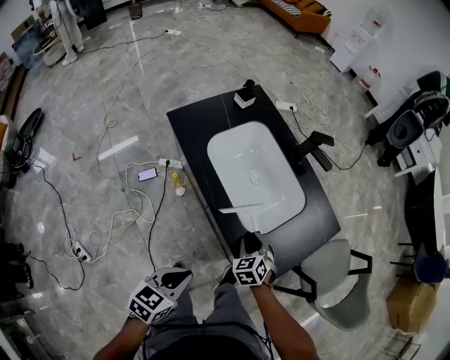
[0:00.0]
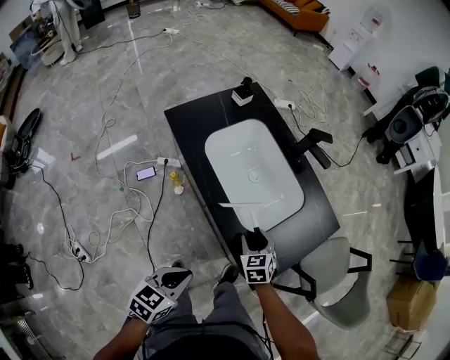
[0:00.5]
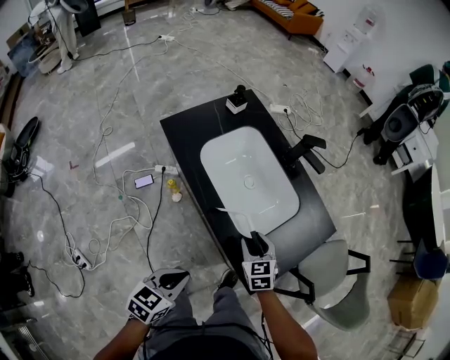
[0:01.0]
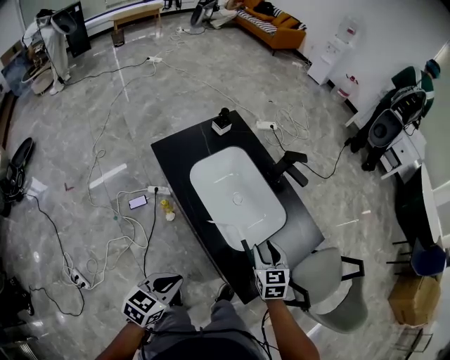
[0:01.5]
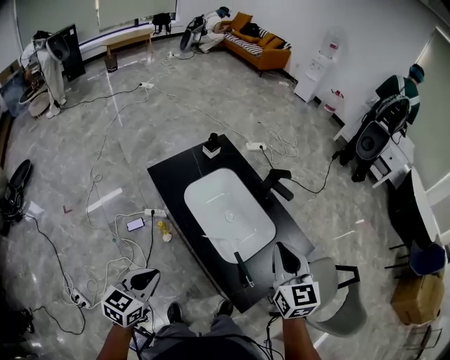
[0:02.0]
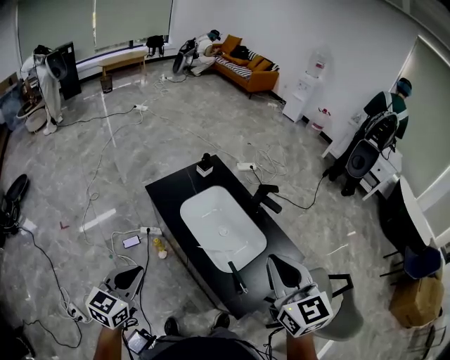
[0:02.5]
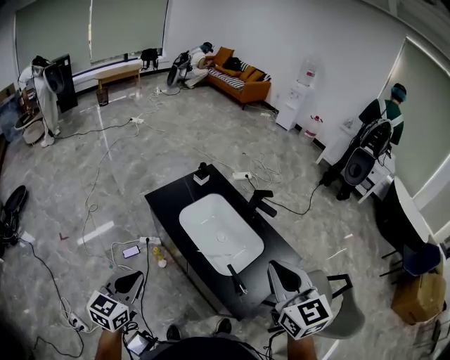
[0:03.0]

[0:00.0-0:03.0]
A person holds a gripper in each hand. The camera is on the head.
0.0 to 1.5 s: The right gripper shifts roughly 15 cm upward, forward and to the right, and turns by approximately 30 degrees; the left gripper moves roughly 5 cm.
1.5 to 3.0 s: The right gripper moves upward, about 35 cm, turns by about 20 degrees, and closes up, while the left gripper shifts some 20 cm upward and to the left, and rotates approximately 20 degrees.

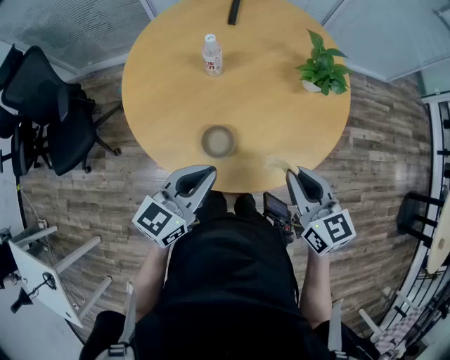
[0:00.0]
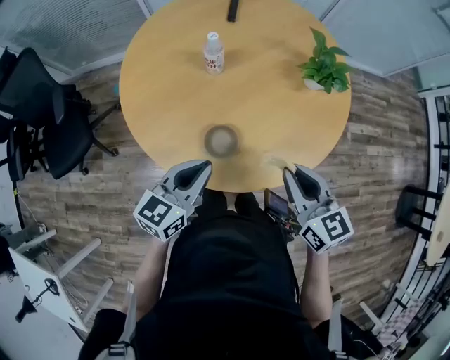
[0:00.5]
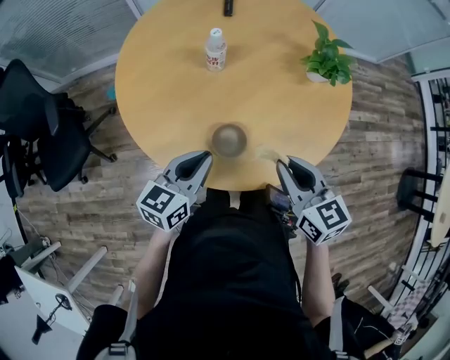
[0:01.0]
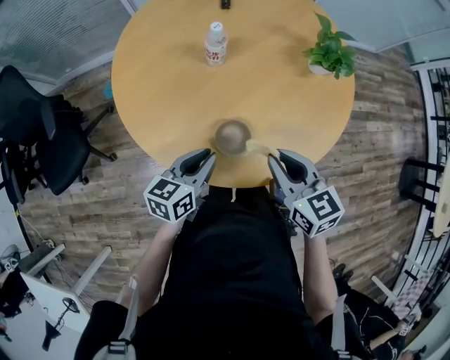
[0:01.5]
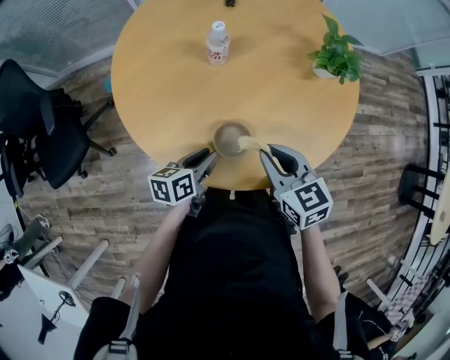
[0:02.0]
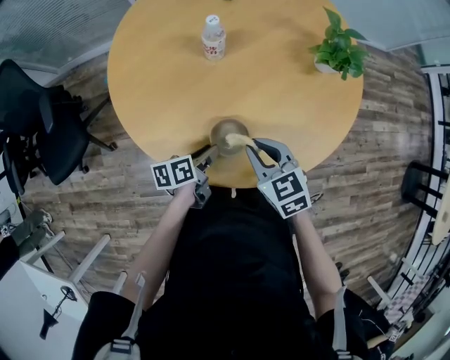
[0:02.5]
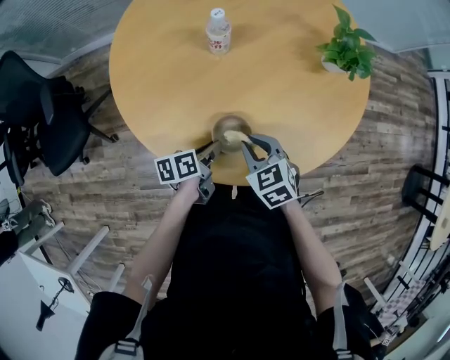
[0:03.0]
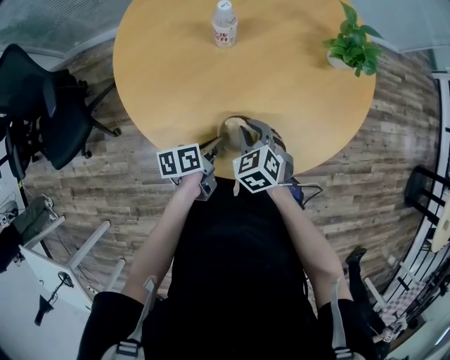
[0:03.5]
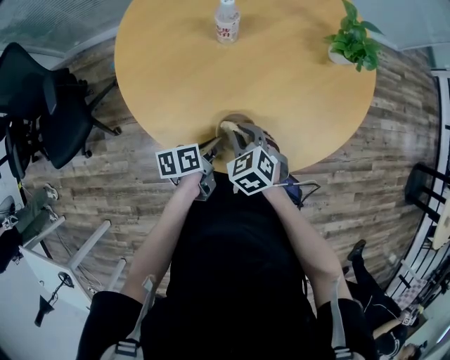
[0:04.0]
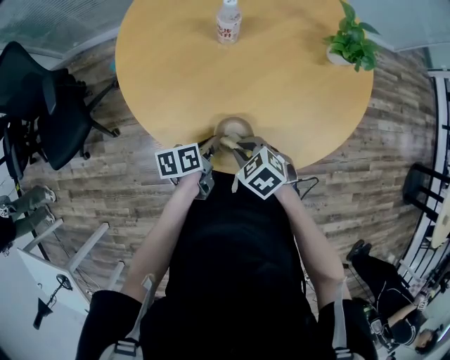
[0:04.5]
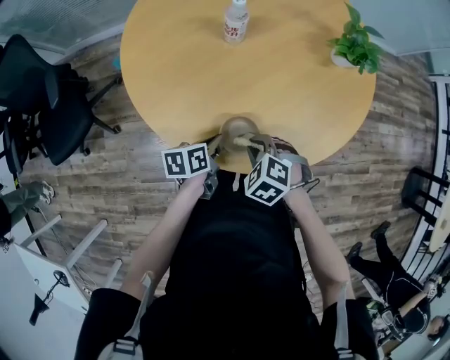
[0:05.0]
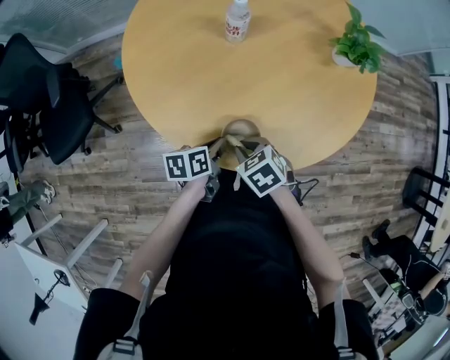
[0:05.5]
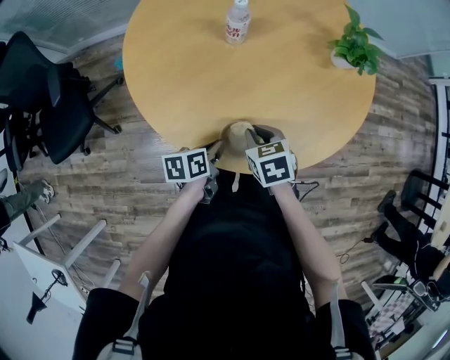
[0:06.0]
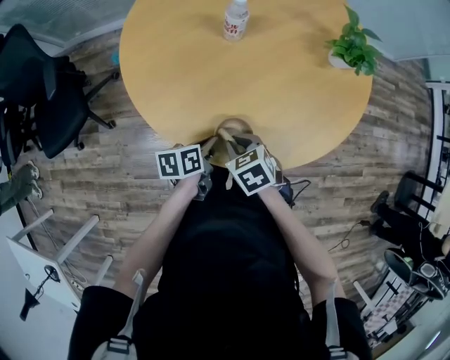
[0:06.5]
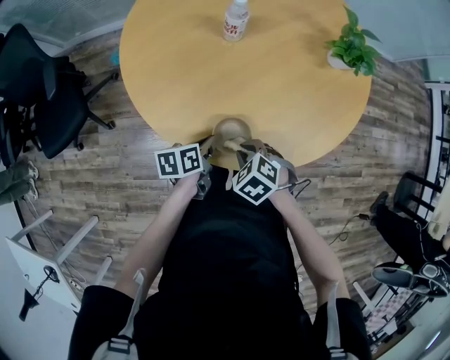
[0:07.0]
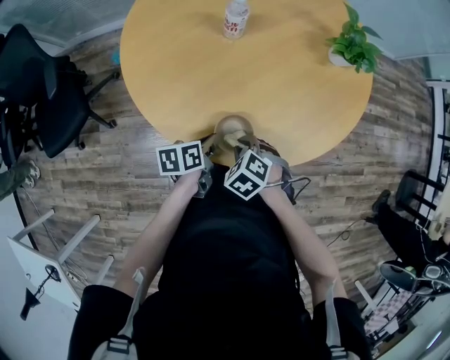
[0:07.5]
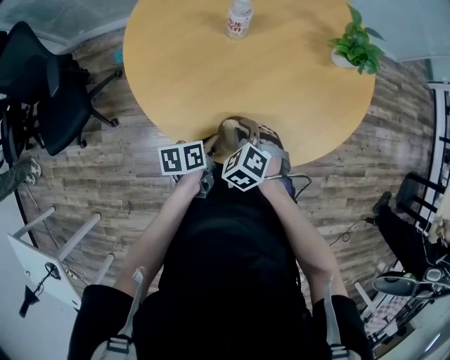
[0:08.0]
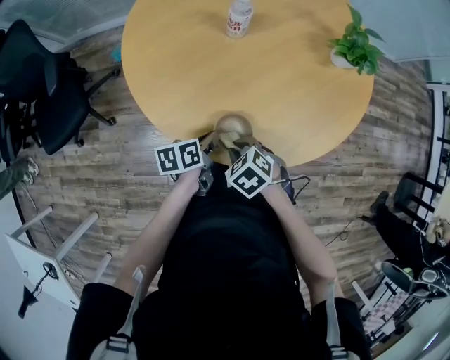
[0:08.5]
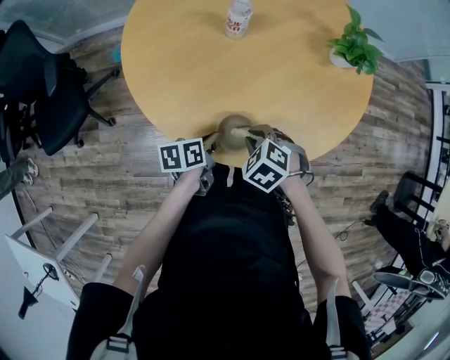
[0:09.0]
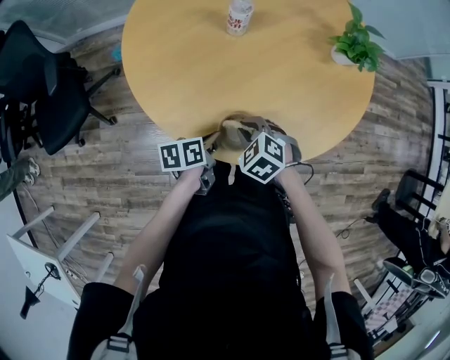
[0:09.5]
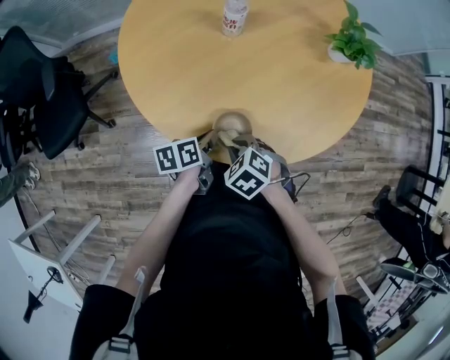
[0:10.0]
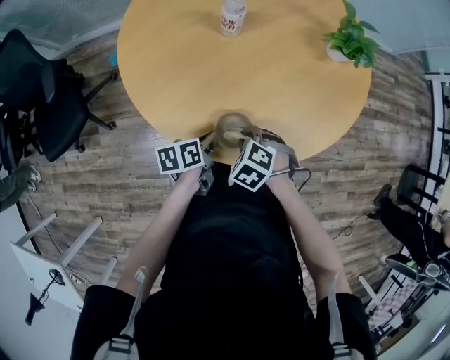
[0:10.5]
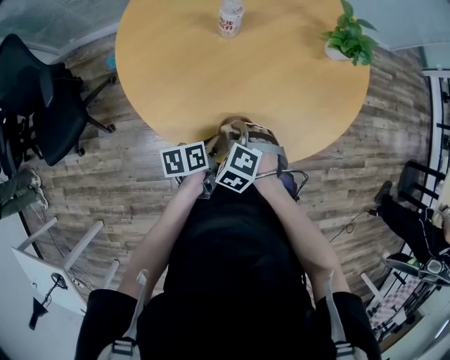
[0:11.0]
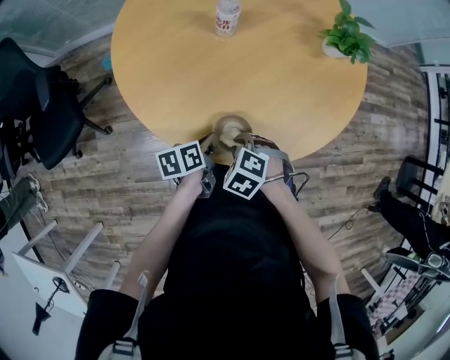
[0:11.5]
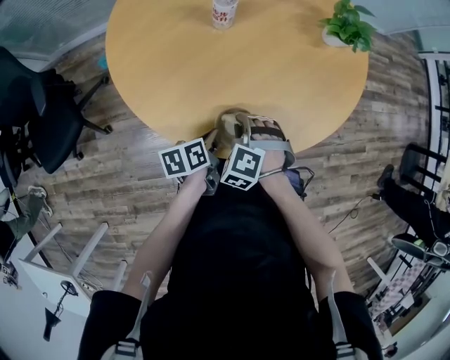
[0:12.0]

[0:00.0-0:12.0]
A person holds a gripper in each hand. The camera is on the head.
0.0 to 2.0 s: The right gripper shifts approximately 15 cm to the left and downward, while the left gripper moves downward, approximately 20 cm, rotates about 40 degrees, and opens up.
2.0 to 4.0 s: The left gripper heads downward, covering roughly 5 cm, and changes its angle by some 20 degrees. Meanwhile the right gripper heads downward and to the left, covering approximately 15 cm, and changes its angle by roughly 30 degrees.
4.0 to 6.0 s: The right gripper turns by roughly 20 degrees.
6.0 to 8.0 s: The right gripper turns by roughly 40 degrees.
8.0 to 10.0 s: The right gripper swings forward and backward, some 5 cm each way, with 2 reversals, and turns by approximately 20 degrees.
10.0 to 12.0 s: The right gripper ends up roughly 5 cm from where it was, and rotates about 30 degrees.

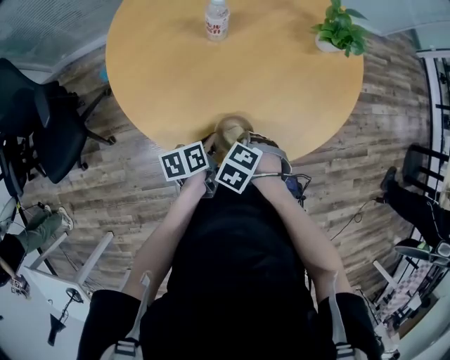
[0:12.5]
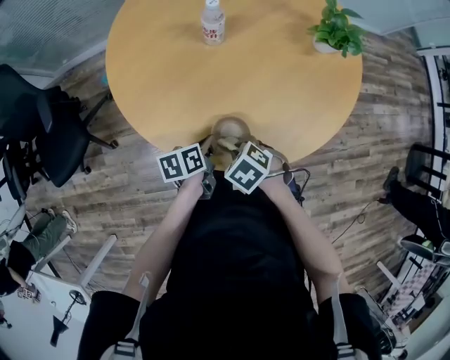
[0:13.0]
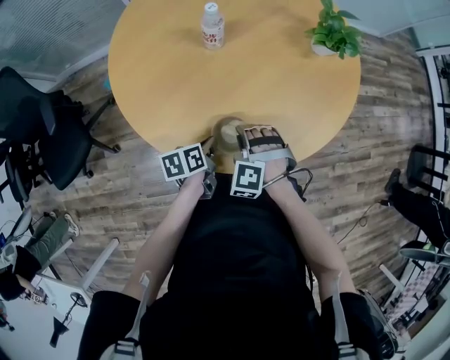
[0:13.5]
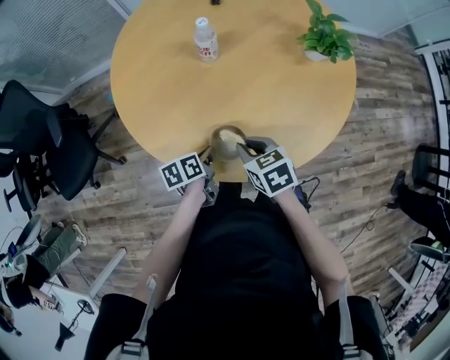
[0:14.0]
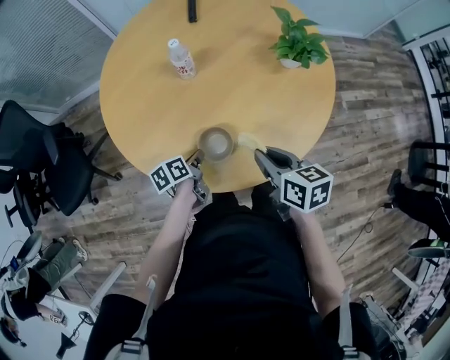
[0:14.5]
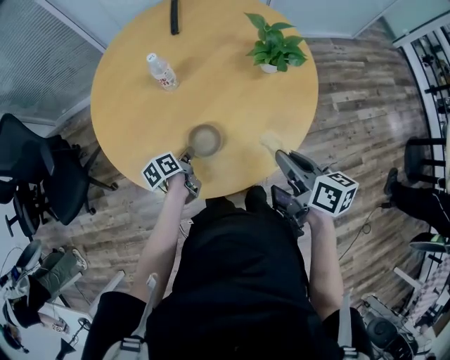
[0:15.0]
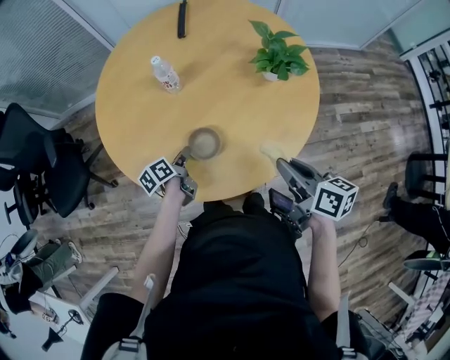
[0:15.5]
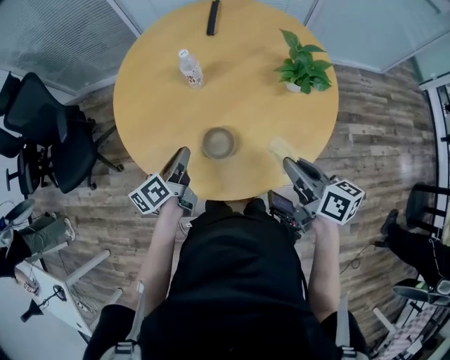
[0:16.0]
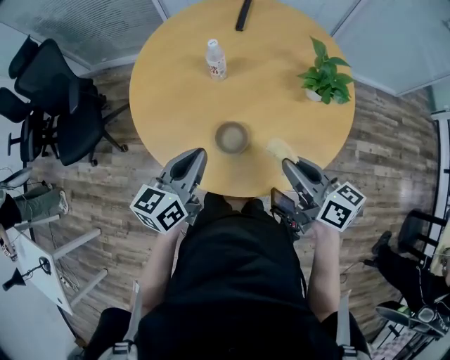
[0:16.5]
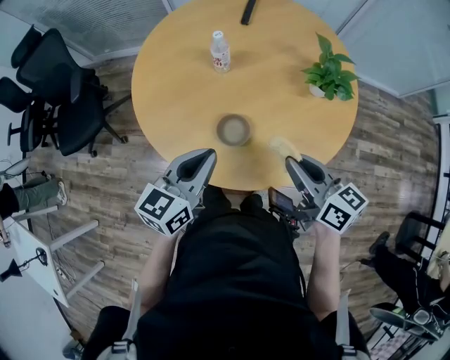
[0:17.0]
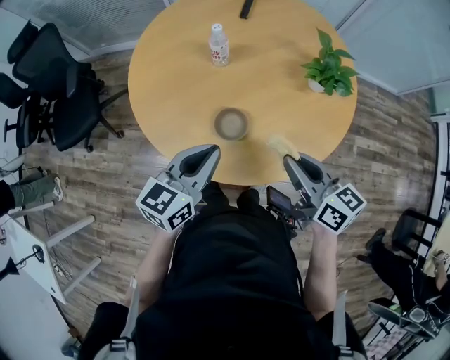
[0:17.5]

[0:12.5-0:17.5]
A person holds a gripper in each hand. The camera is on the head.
12.5 to 15.0 s: The right gripper shifts by roughly 30 cm, and angles its fingers upward, by approximately 60 degrees; the left gripper ends up about 10 cm from where it was.
15.0 to 17.5 s: The right gripper shifts by approximately 5 cm, and turns by roughly 30 degrees. The left gripper shifts about 25 cm upward, twists some 50 degrees clockwise, seen from behind, and opens, then closes once more.

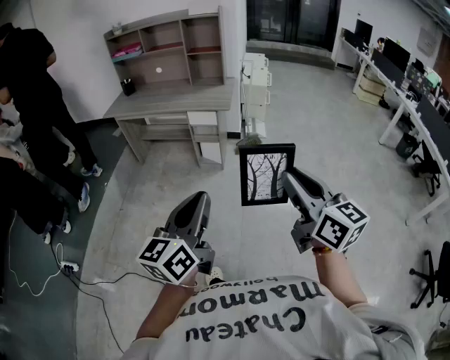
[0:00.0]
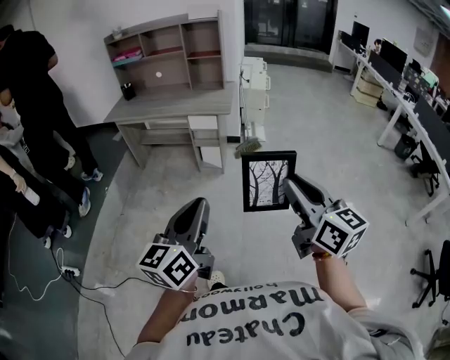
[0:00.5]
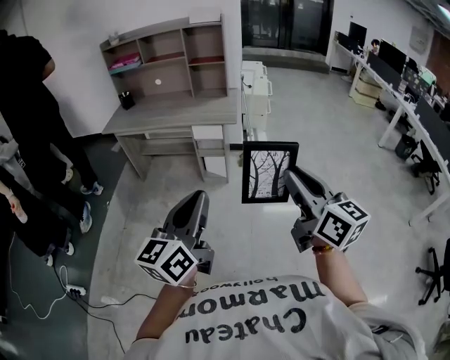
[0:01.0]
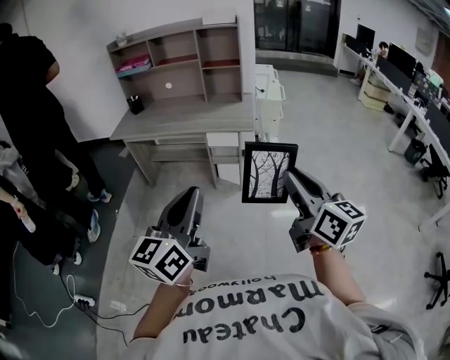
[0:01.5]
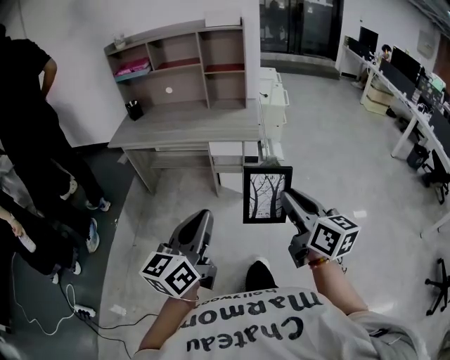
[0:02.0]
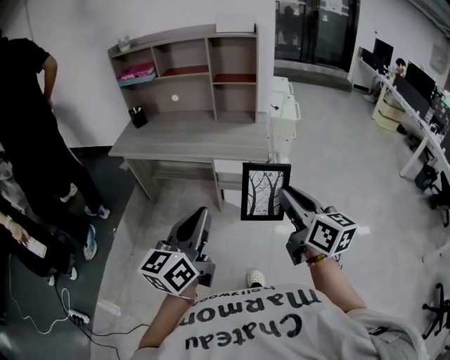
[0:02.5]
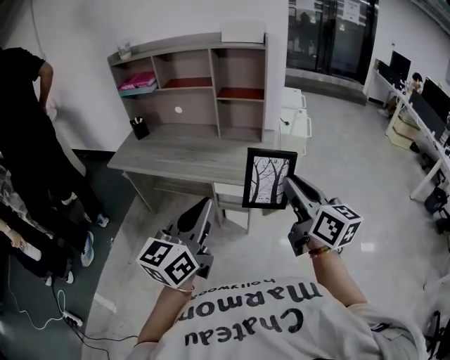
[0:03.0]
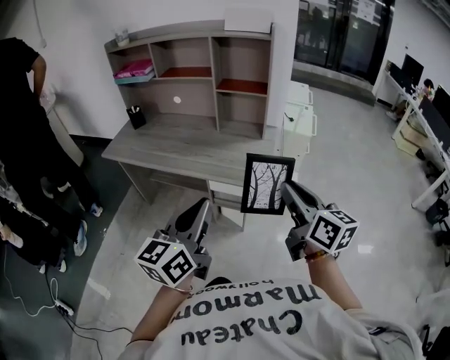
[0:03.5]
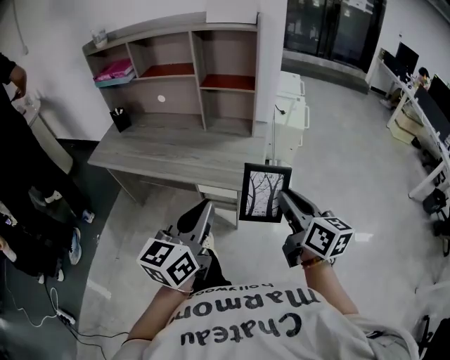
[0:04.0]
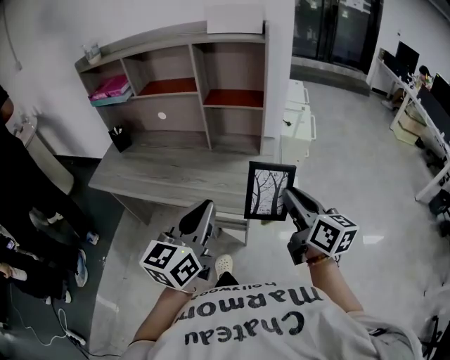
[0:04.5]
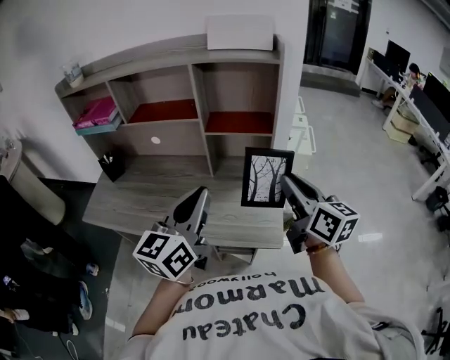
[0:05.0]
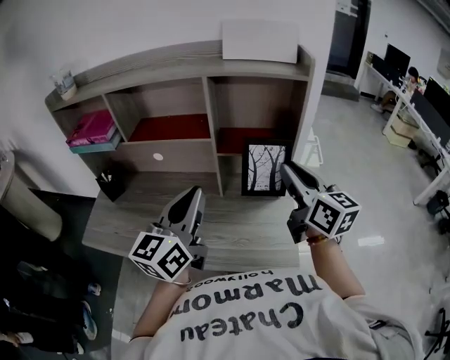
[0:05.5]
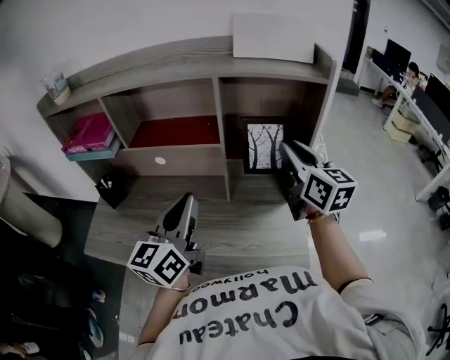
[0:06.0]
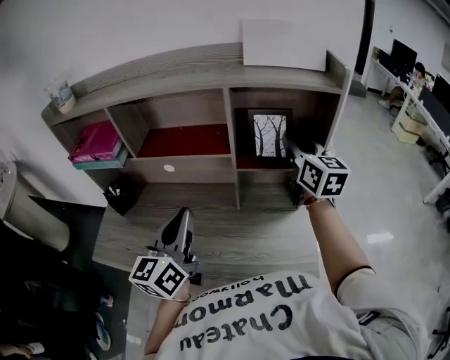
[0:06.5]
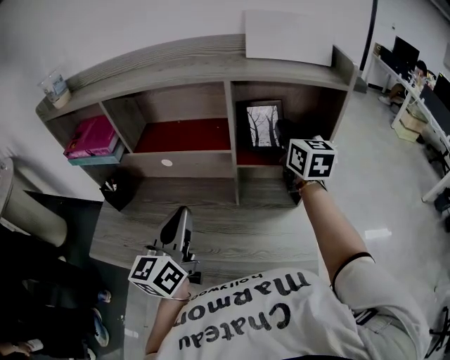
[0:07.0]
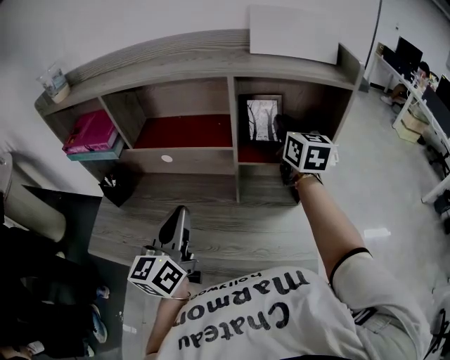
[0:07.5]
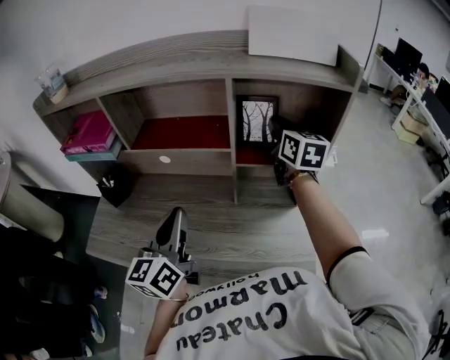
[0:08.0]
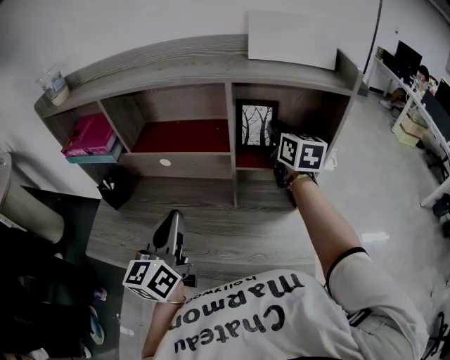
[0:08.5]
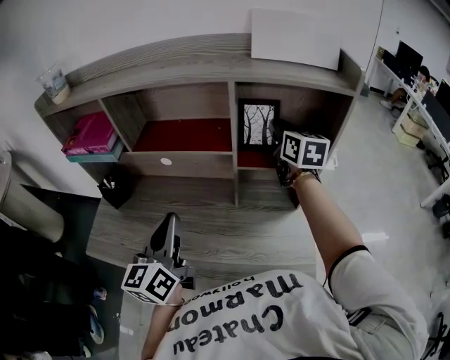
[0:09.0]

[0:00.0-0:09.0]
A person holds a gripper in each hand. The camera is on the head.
0.0 to 2.0 s: Both grippers move forward and to the left, roughly 25 cm.
2.0 to 4.5 s: The pair of grippers is taken forward, about 50 cm.
4.5 to 7.0 s: The left gripper goes roughly 35 cm forward and to the left; the right gripper travels forward by some 40 cm, and swivels roughly 30 degrees.
7.0 to 9.0 s: The grippers make only small movements.
